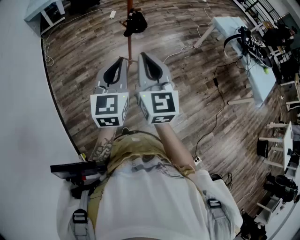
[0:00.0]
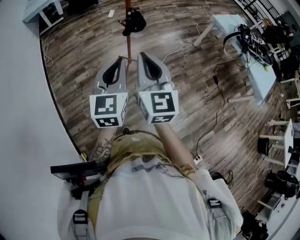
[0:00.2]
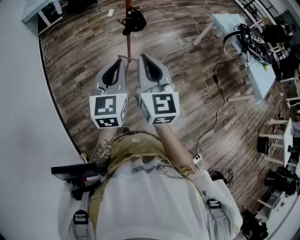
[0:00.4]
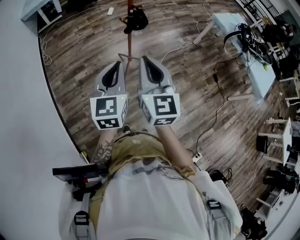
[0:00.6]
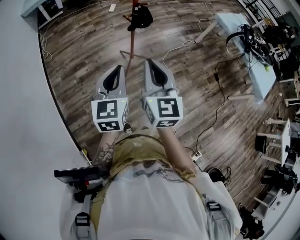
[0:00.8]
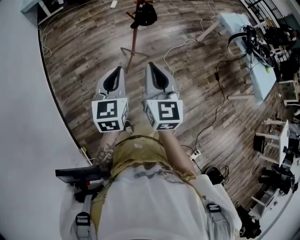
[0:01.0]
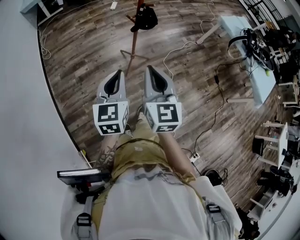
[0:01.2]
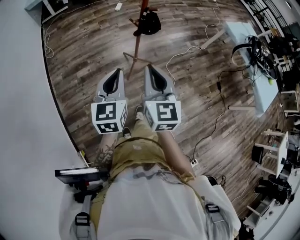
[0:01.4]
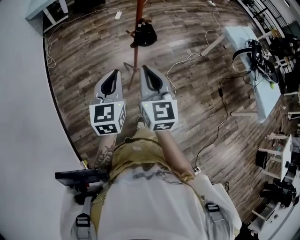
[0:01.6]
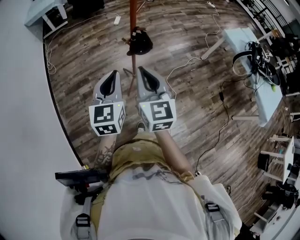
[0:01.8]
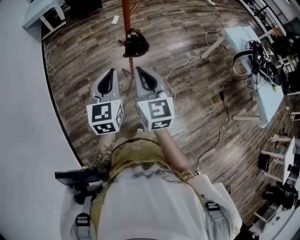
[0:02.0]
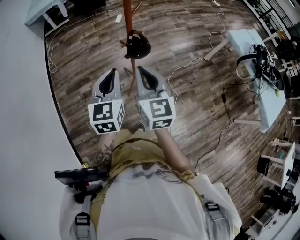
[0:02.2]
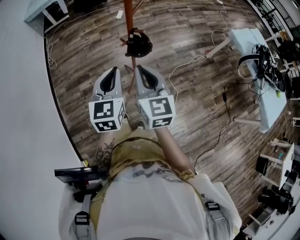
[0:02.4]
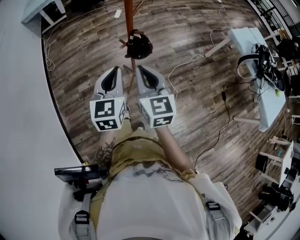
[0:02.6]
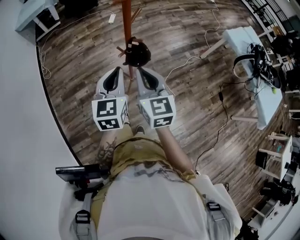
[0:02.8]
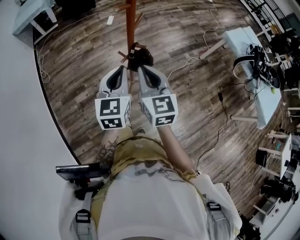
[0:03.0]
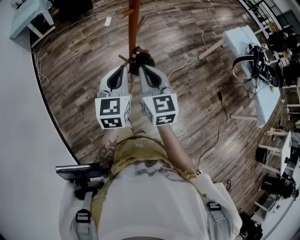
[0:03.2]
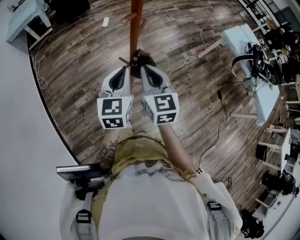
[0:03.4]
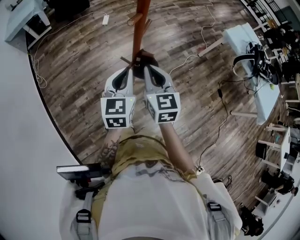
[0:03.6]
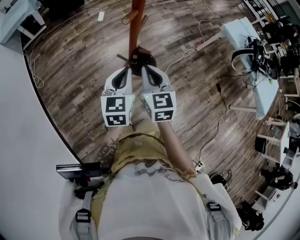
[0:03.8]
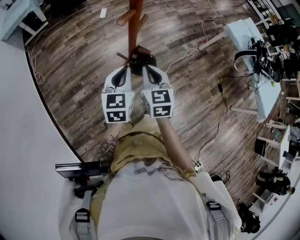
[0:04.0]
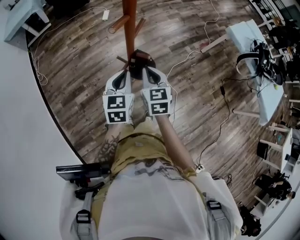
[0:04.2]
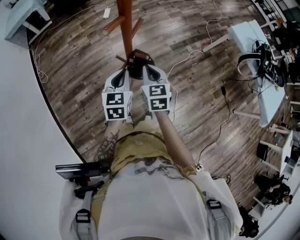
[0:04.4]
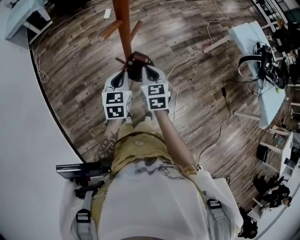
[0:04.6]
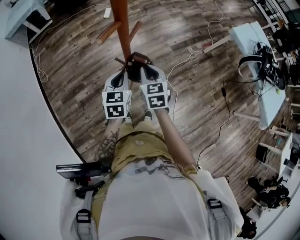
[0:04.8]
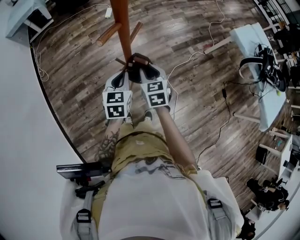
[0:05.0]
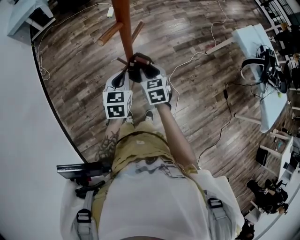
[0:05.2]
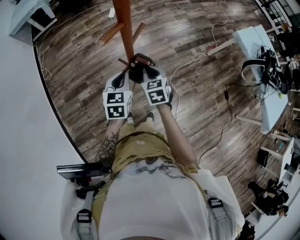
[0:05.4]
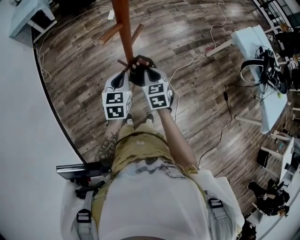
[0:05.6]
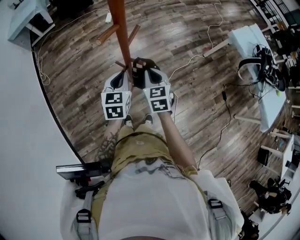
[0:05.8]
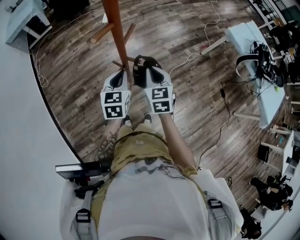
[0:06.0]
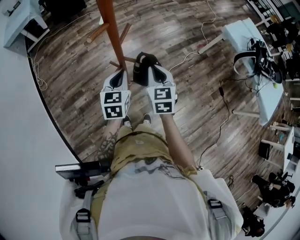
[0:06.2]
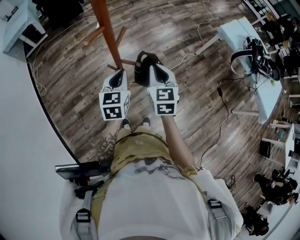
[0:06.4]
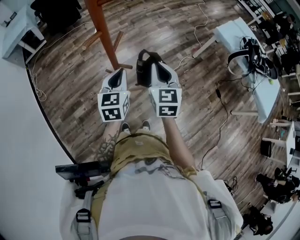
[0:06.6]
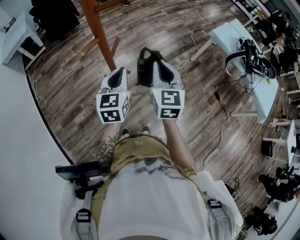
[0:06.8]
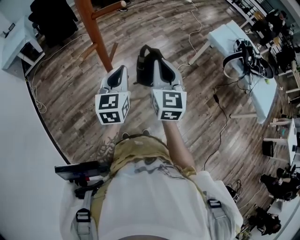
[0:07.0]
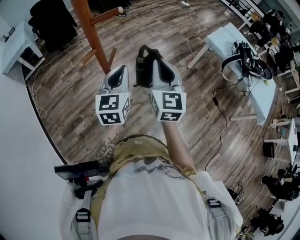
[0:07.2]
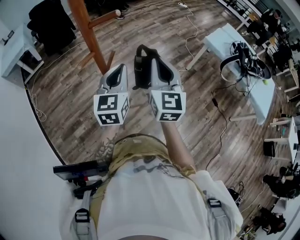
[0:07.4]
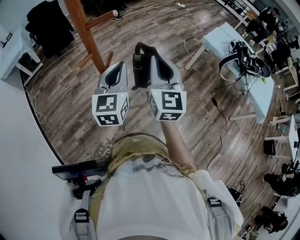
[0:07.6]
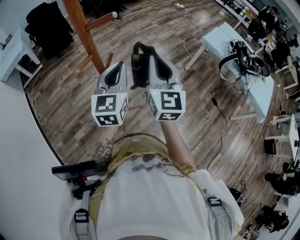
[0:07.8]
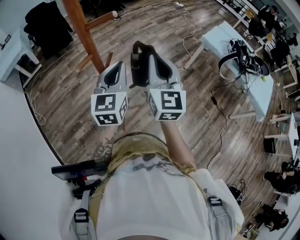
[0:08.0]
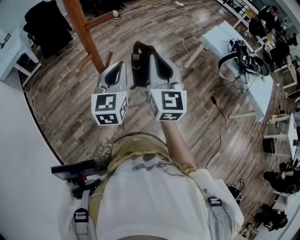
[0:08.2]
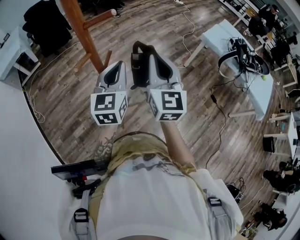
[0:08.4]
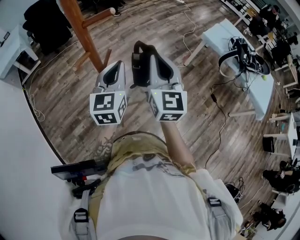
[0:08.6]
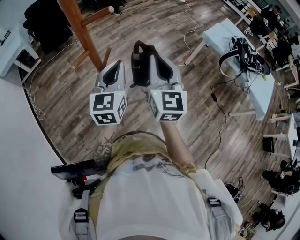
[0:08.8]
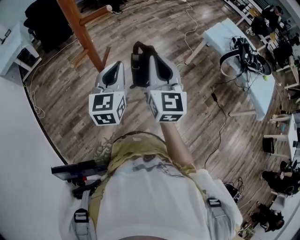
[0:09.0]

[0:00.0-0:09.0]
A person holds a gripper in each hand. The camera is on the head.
0:00.0 to 0:01.6: The right gripper is displaced forward and downward by approximately 15 cm. The left gripper moves forward, downward and to the left, about 15 cm.
0:01.6 to 0:03.0: Both grippers move forward, roughly 20 cm.
0:03.0 to 0:04.4: The two grippers go approximately 15 cm downward and forward.
0:04.4 to 0:06.0: The right gripper opens and closes again.
0:06.0 to 0:07.6: The grippers both shift upward by approximately 20 cm. The right gripper points its fingers roughly 30 degrees further upward. The left gripper changes its angle by approximately 30 degrees.
0:07.6 to 0:09.0: The grippers stay close to where they were, moving slightly.

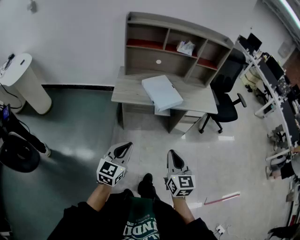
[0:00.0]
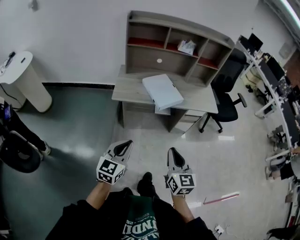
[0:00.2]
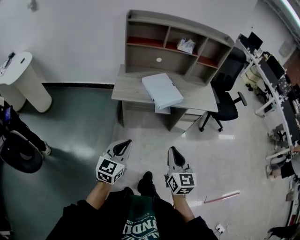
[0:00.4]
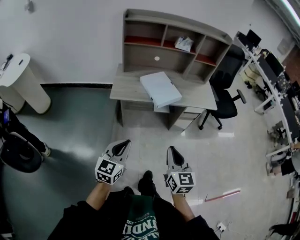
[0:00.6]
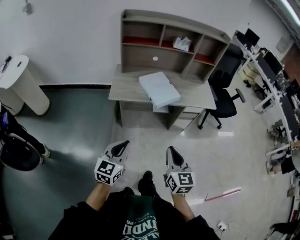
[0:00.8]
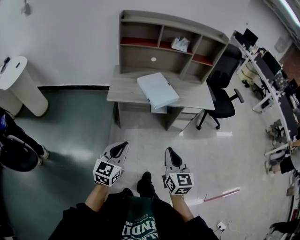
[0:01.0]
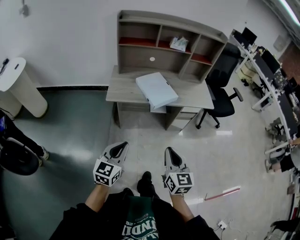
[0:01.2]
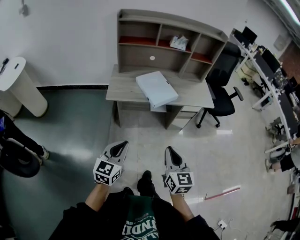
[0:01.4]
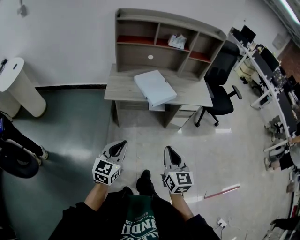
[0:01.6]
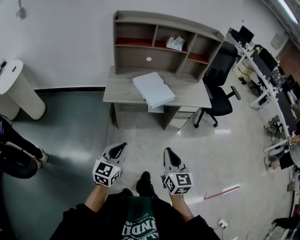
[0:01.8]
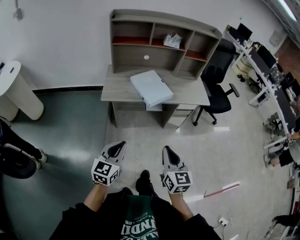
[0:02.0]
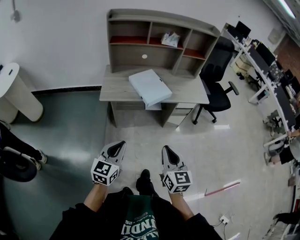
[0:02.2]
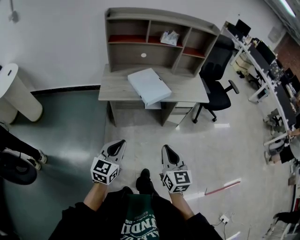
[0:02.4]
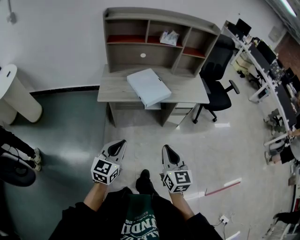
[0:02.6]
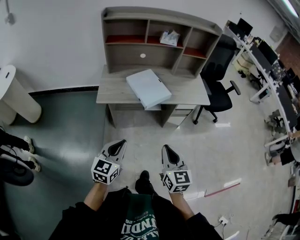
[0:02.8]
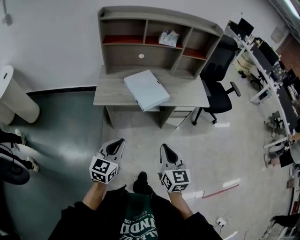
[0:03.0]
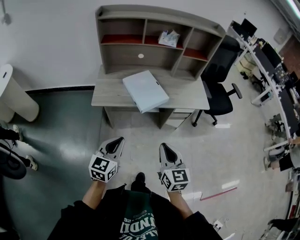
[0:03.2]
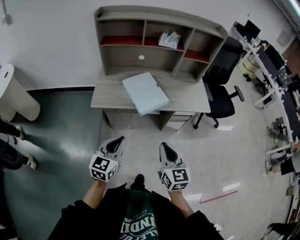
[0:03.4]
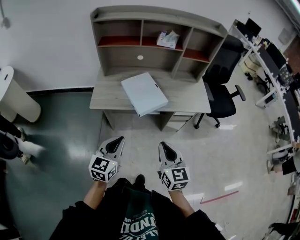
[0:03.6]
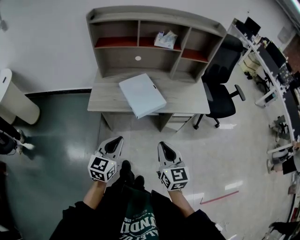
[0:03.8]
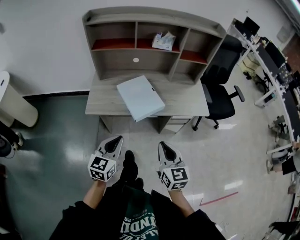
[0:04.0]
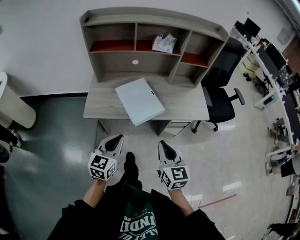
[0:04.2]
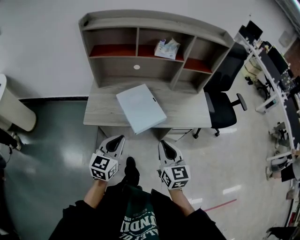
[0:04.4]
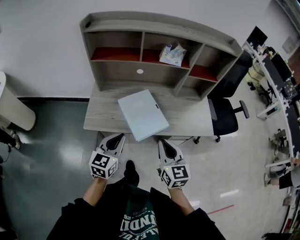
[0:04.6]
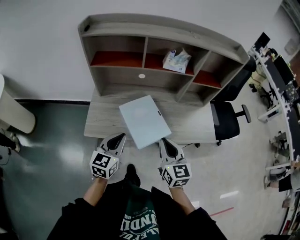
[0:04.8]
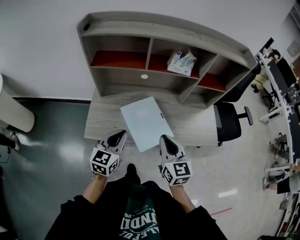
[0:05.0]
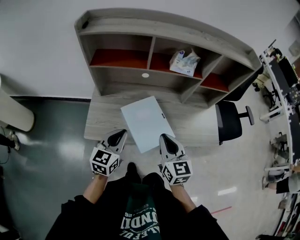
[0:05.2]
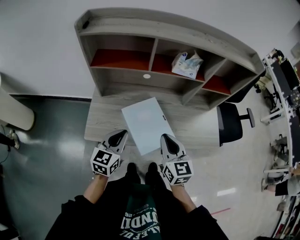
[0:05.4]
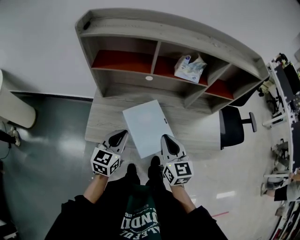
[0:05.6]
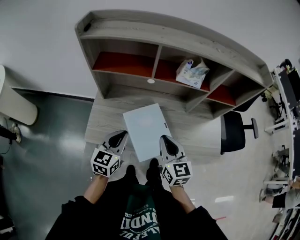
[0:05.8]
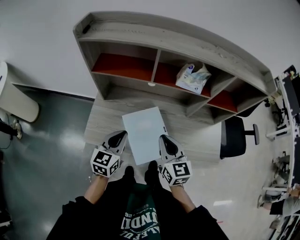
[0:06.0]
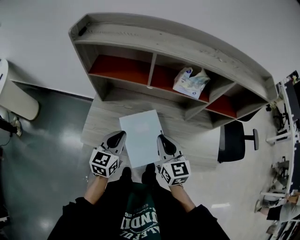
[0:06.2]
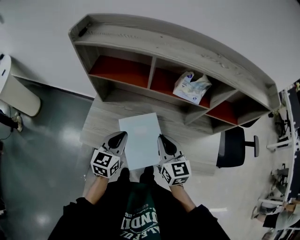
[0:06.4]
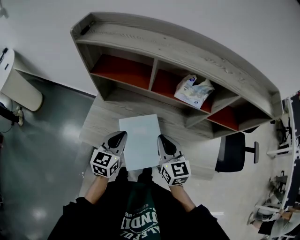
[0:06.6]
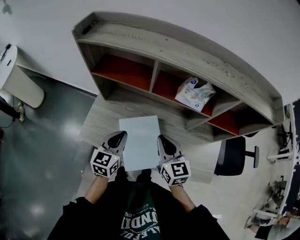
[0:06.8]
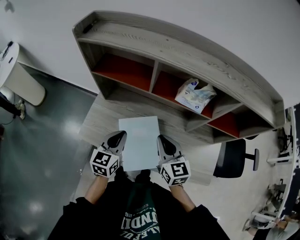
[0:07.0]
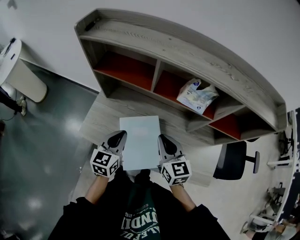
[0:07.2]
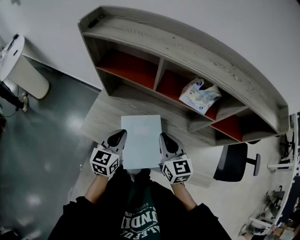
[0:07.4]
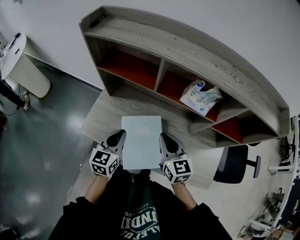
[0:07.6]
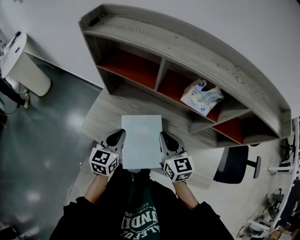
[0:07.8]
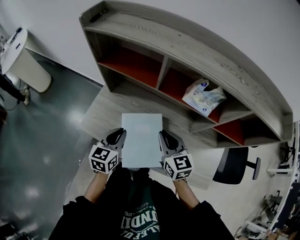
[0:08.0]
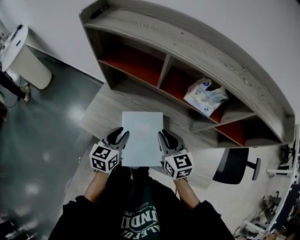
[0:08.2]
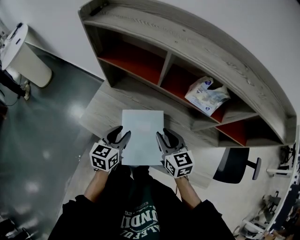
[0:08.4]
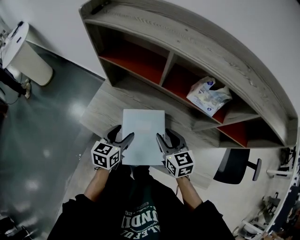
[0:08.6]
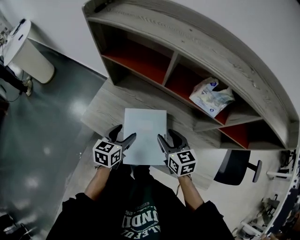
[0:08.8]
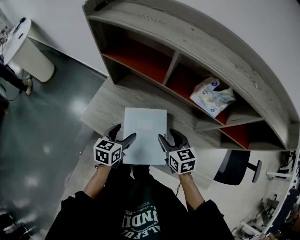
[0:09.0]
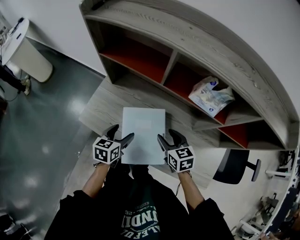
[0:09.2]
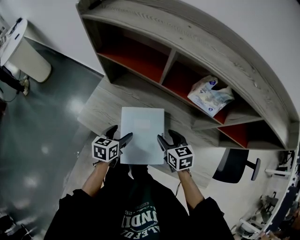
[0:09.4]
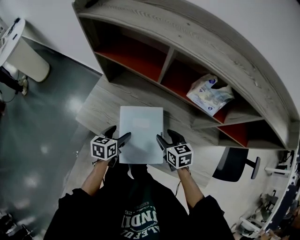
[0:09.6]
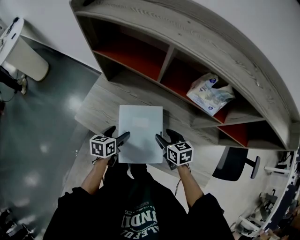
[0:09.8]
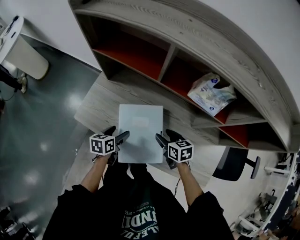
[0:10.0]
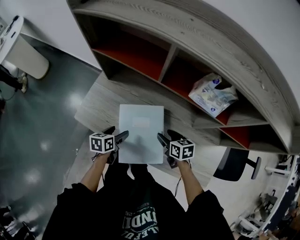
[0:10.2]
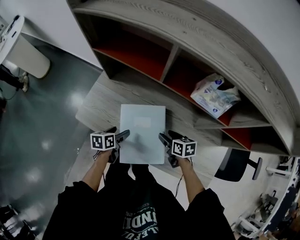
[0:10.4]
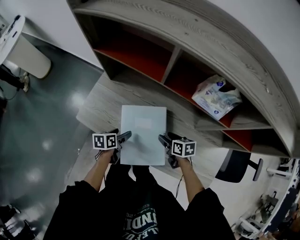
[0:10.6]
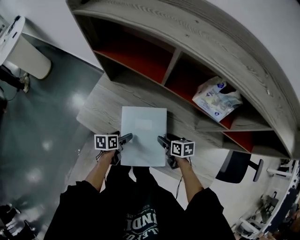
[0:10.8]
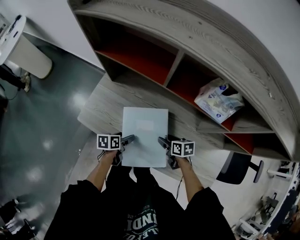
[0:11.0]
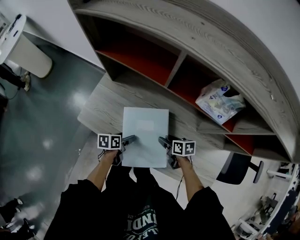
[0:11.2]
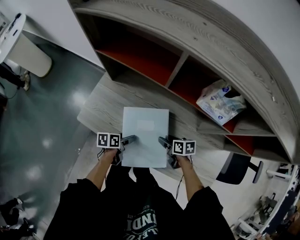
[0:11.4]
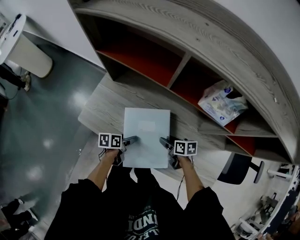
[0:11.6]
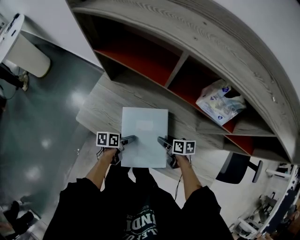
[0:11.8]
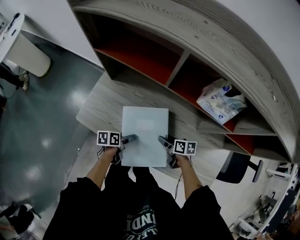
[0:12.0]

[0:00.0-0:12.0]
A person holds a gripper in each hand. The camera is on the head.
0:00.0 to 0:01.6: Both grippers stay put.
0:01.6 to 0:03.0: The grippers both shift forward by about 10 cm.
0:03.0 to 0:04.4: The grippers both shift forward by about 20 cm.
0:04.4 to 0:06.0: Both grippers move forward, roughly 25 cm.
0:06.0 to 0:07.6: The right gripper moves forward, approximately 10 cm.
0:07.6 to 0:09.0: Both grippers travel together downward, approximately 10 cm. The right gripper turns by approximately 20 degrees, and opens its fingers. Meanwhile the left gripper opens.
0:09.0 to 0:10.4: The two grippers go about 15 cm downward. The left gripper swivels roughly 30 degrees. The right gripper turns by approximately 30 degrees.
0:10.4 to 0:12.0: The left gripper heads downward, covering some 5 cm.

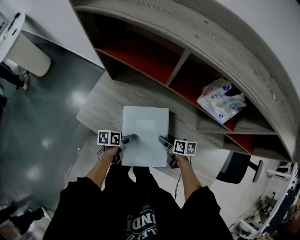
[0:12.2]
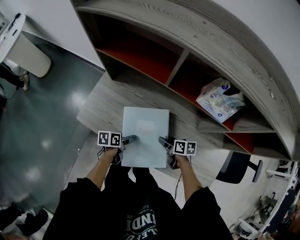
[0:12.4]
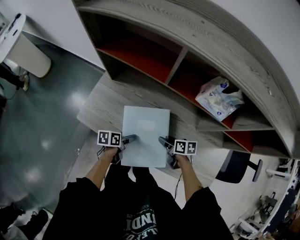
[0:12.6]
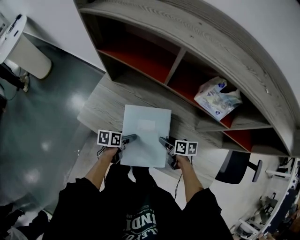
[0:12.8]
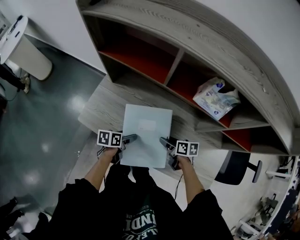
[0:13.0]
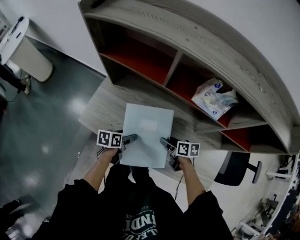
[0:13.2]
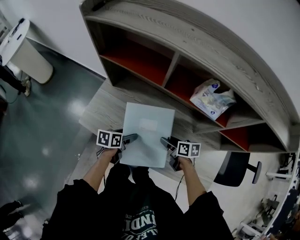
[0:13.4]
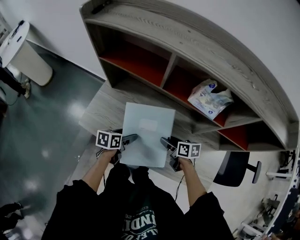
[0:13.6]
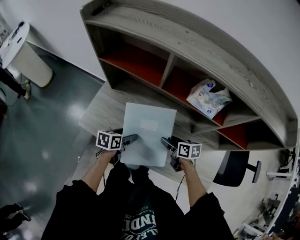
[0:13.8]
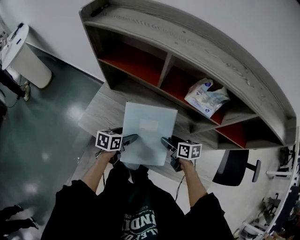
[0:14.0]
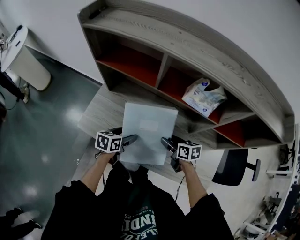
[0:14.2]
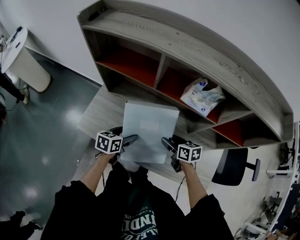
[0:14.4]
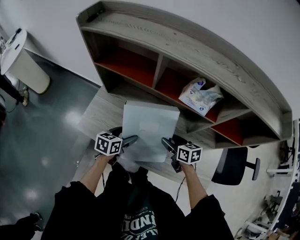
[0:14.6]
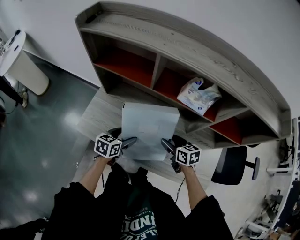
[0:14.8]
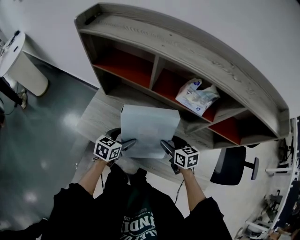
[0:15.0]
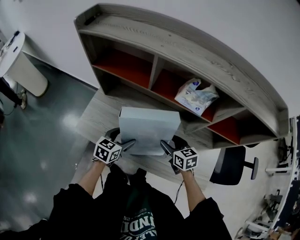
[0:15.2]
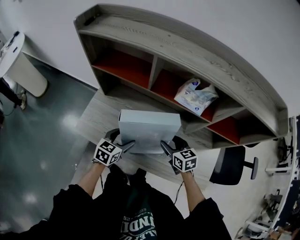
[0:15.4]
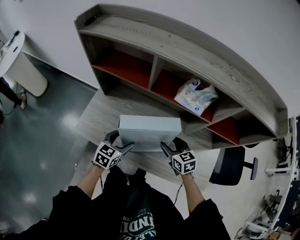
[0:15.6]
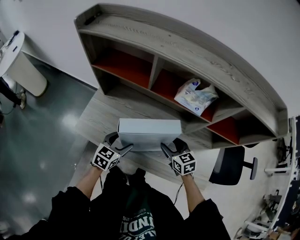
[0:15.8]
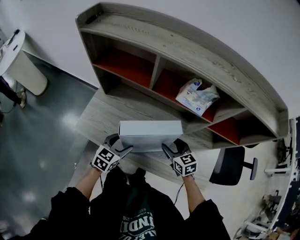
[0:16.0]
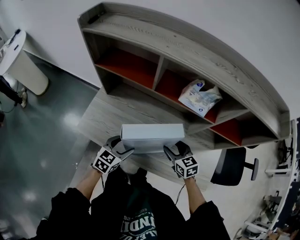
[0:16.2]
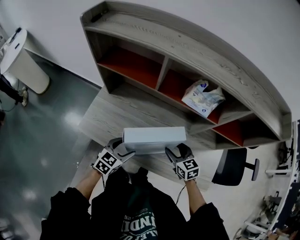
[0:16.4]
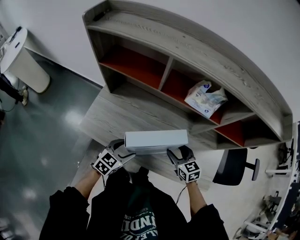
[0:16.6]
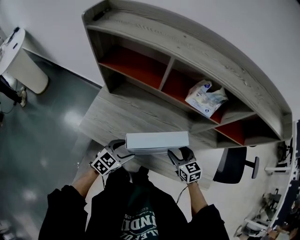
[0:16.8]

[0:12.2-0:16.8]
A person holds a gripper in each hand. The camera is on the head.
0:12.2 to 0:13.8: The grippers both shift upward by roughly 10 cm. The left gripper turns by some 20 degrees.
0:13.8 to 0:15.2: The two grippers go approximately 5 cm upward. The right gripper rotates approximately 30 degrees, while the left gripper rotates roughly 30 degrees.
0:15.2 to 0:16.8: The left gripper is displaced backward by approximately 5 cm.
